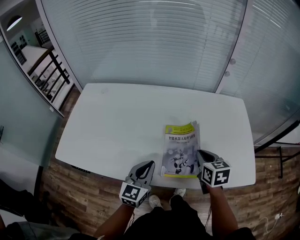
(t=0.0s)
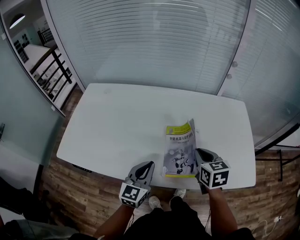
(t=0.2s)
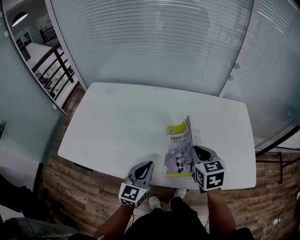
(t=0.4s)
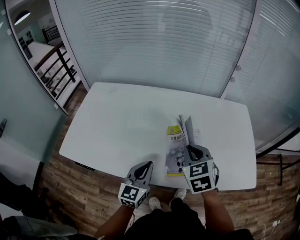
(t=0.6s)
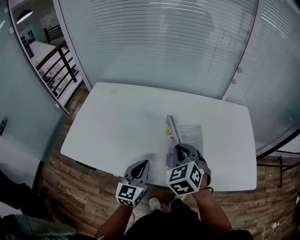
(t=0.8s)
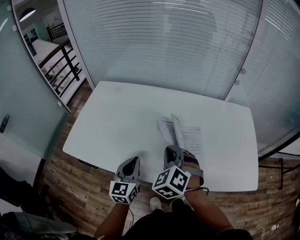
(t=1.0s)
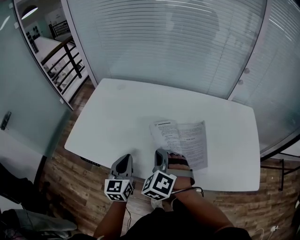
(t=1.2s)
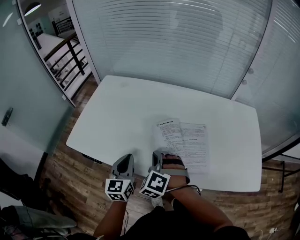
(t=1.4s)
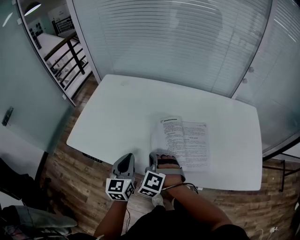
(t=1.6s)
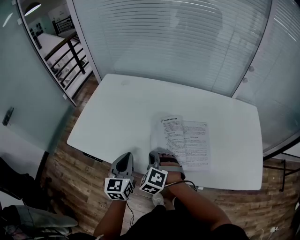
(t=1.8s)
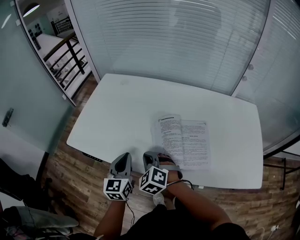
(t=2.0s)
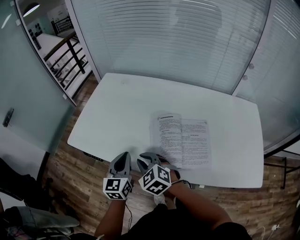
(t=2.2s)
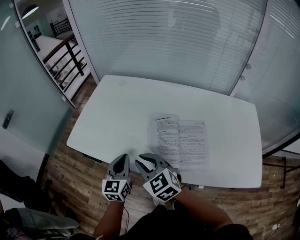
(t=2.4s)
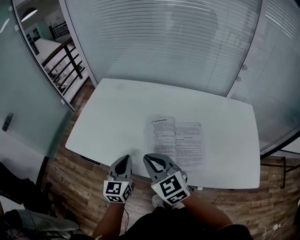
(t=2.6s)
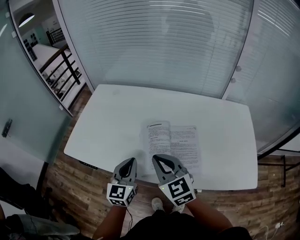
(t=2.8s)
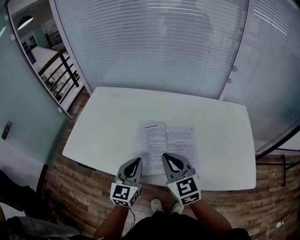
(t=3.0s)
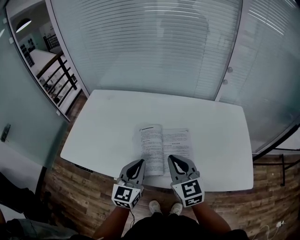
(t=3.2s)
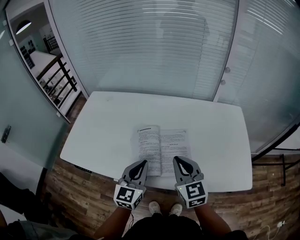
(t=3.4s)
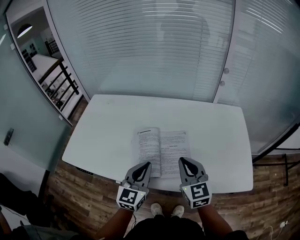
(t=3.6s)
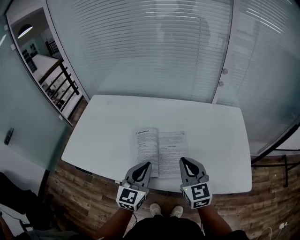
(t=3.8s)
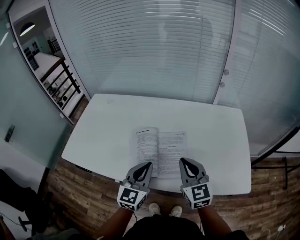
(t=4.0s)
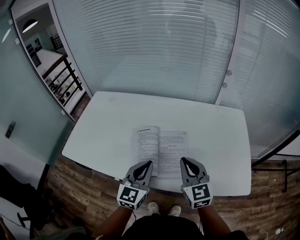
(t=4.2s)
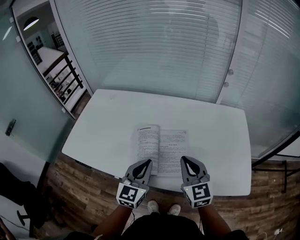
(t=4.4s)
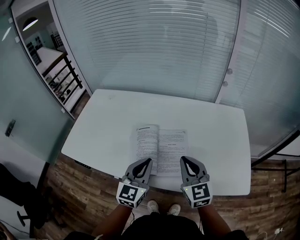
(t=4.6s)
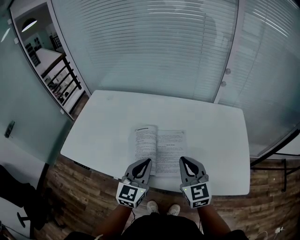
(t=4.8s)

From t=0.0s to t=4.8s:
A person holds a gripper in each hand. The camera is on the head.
From t=0.0s to t=1.6s: The right gripper heads to the left, covering about 30 cm, and rotates around the line of its fingers by about 80 degrees, counterclockwise from behind; the left gripper travels to the left by some 15 cm, and rotates about 20 degrees.
From t=1.6s to t=3.2s: The left gripper heads to the right, covering some 15 cm, while the right gripper is displaced to the right and upward by some 20 cm, and rolls clockwise, seen from behind, by approximately 60 degrees.
From t=3.2s to t=4.8s: Both grippers travel together to the right, roughly 5 cm.

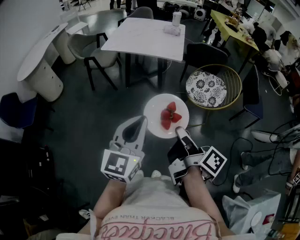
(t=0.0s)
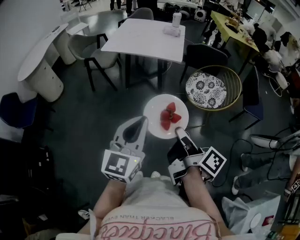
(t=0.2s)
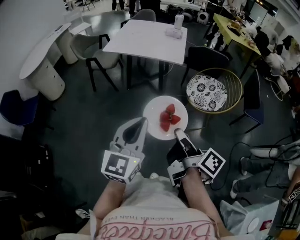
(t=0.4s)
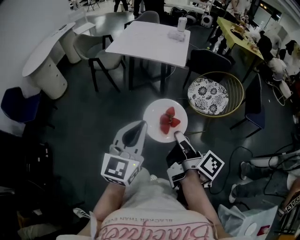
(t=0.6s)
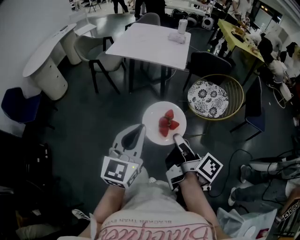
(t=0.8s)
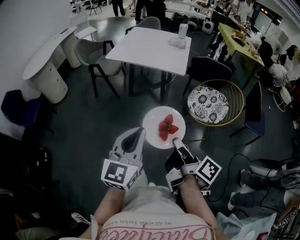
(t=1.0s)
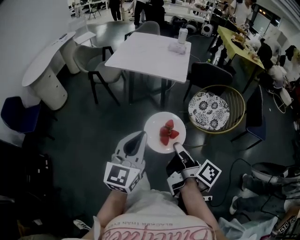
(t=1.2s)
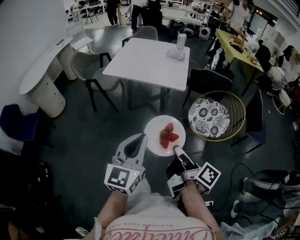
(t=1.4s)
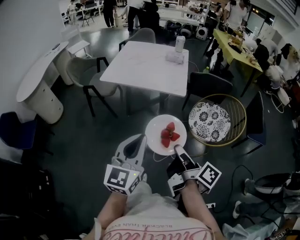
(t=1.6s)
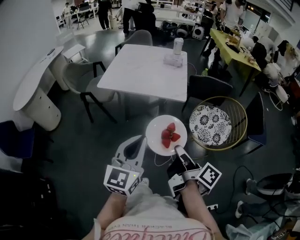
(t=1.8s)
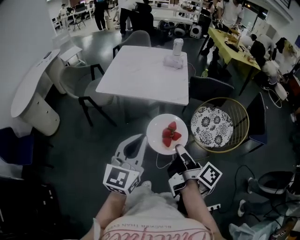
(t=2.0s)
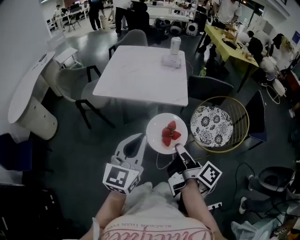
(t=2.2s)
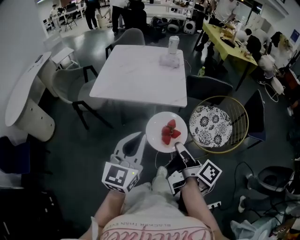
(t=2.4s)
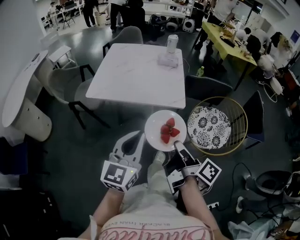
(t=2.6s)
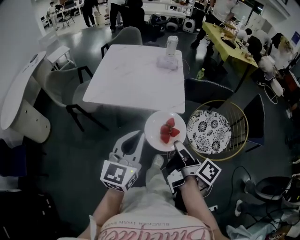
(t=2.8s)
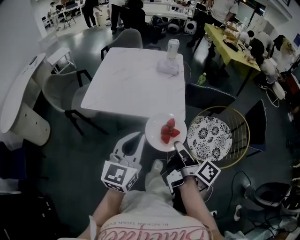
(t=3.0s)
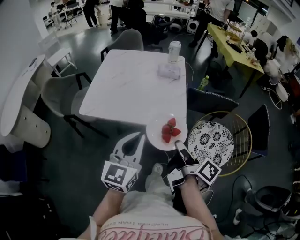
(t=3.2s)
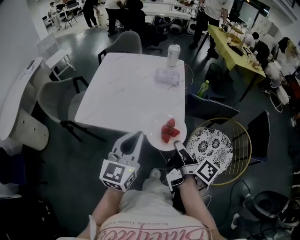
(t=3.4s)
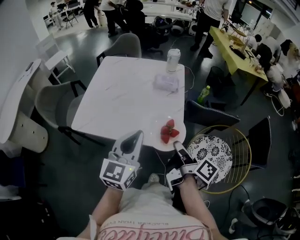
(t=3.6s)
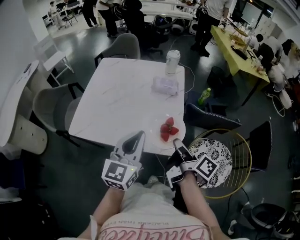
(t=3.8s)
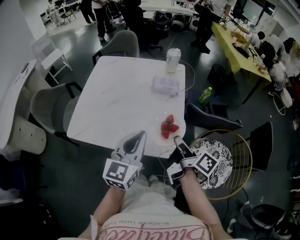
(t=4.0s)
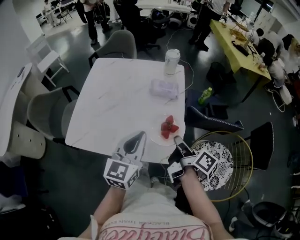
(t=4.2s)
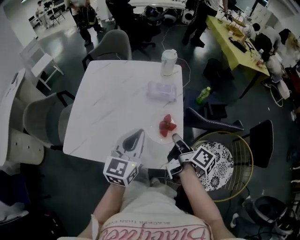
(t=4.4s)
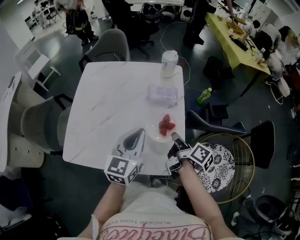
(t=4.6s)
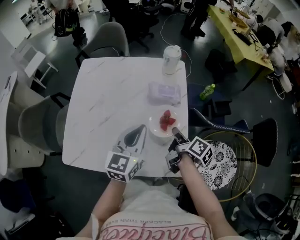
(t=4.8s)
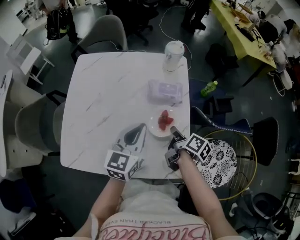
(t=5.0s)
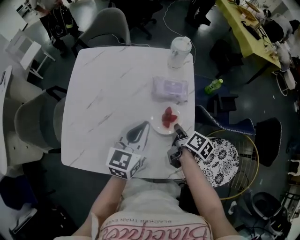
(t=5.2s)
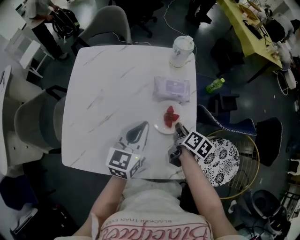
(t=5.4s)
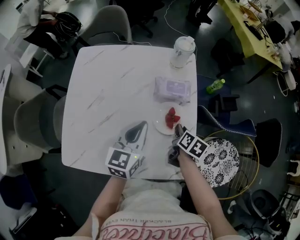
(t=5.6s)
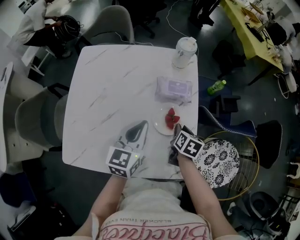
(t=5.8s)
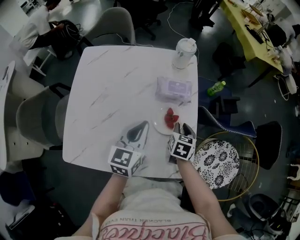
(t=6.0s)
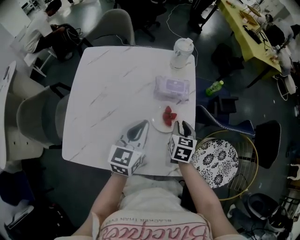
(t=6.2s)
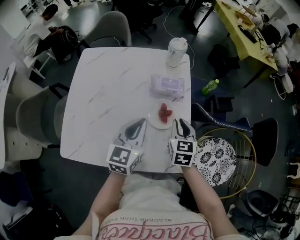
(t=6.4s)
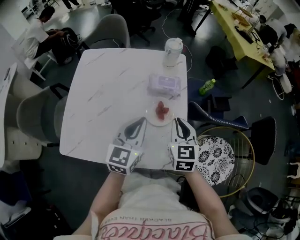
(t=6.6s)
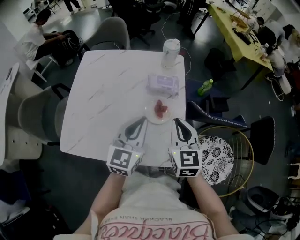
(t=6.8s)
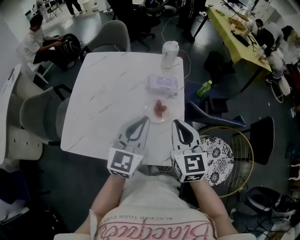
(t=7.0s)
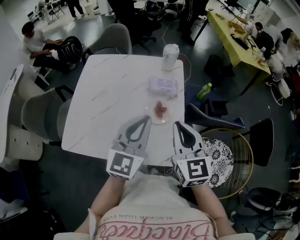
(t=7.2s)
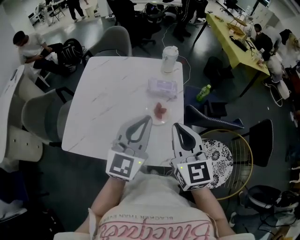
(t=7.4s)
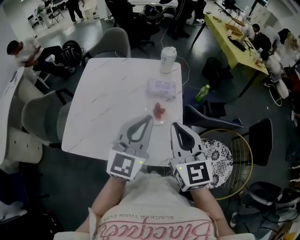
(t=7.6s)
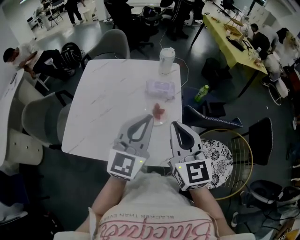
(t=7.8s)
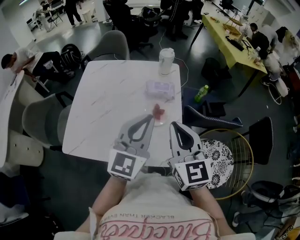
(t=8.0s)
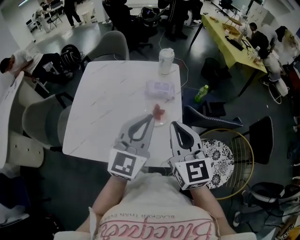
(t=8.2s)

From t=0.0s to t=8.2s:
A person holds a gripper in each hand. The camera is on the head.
From t=0.0s to t=1.6s: Both grippers travel together forward, approximately 20 cm.
From t=1.6s to t=3.2s: Both grippers move forward, approximately 35 cm.
From t=3.2s to t=5.0s: The pair of grippers is taken forward, about 40 cm. The right gripper goes roughly 20 cm downward, and rotates approximately 20 degrees.
From t=5.0s to t=6.6s: The right gripper heads upward, covering roughly 10 cm, and rotates around the line of its fingers by roughly 70 degrees, counterclockwise from behind.
From t=6.6s to t=8.2s: The grippers both shift upward and backward by roughly 15 cm. The right gripper turns by approximately 20 degrees.

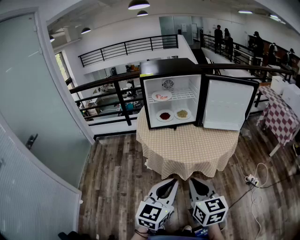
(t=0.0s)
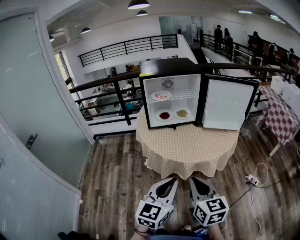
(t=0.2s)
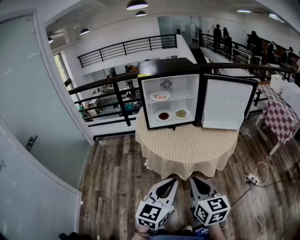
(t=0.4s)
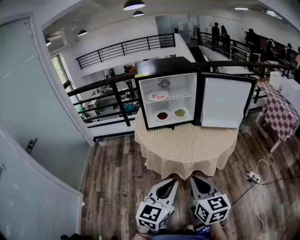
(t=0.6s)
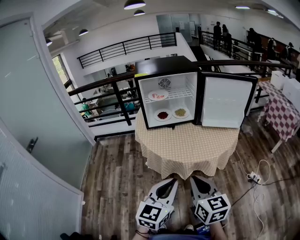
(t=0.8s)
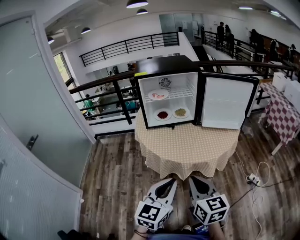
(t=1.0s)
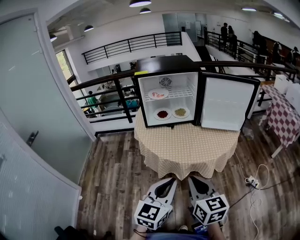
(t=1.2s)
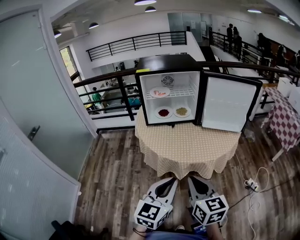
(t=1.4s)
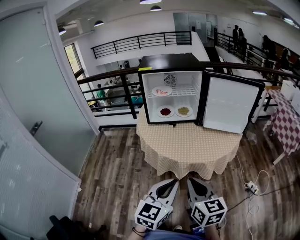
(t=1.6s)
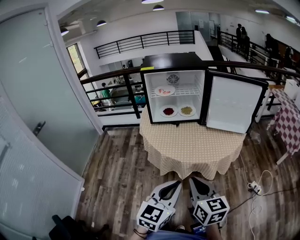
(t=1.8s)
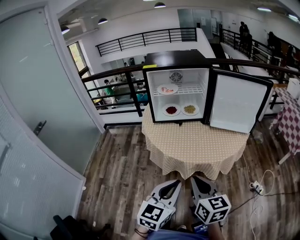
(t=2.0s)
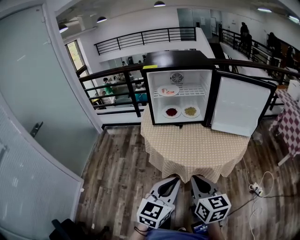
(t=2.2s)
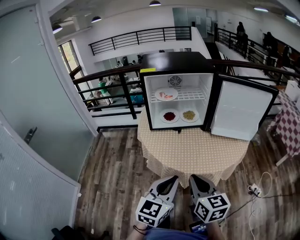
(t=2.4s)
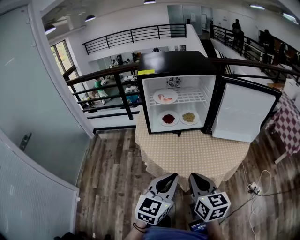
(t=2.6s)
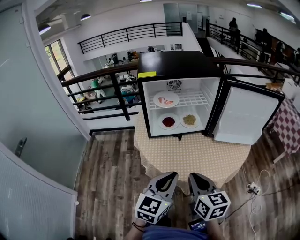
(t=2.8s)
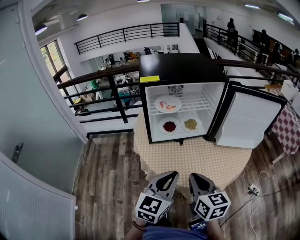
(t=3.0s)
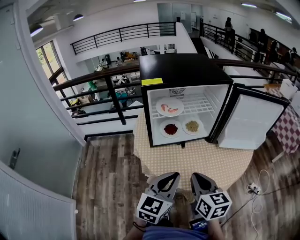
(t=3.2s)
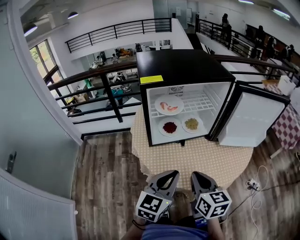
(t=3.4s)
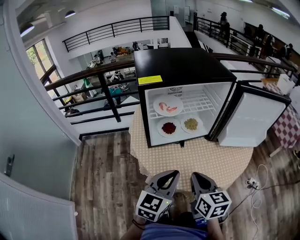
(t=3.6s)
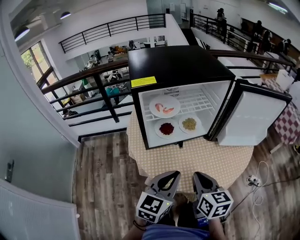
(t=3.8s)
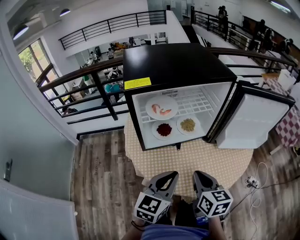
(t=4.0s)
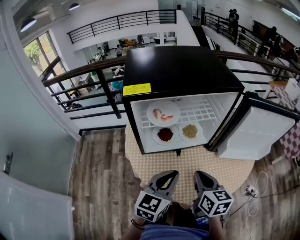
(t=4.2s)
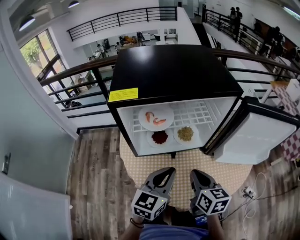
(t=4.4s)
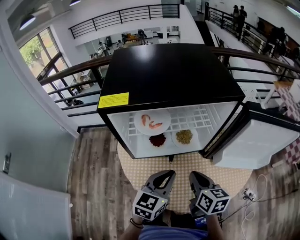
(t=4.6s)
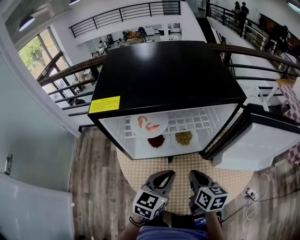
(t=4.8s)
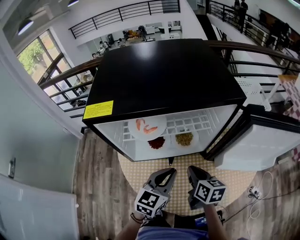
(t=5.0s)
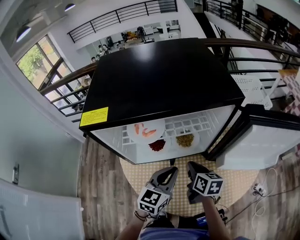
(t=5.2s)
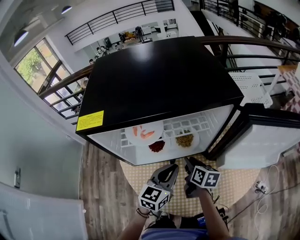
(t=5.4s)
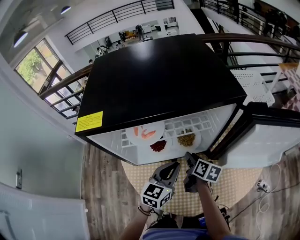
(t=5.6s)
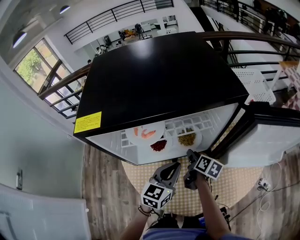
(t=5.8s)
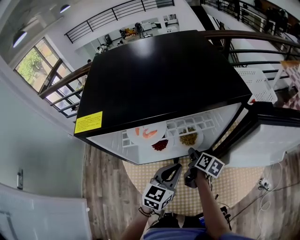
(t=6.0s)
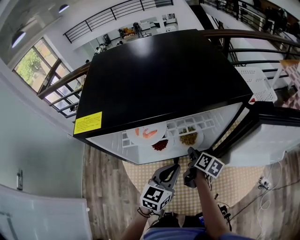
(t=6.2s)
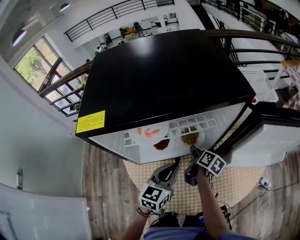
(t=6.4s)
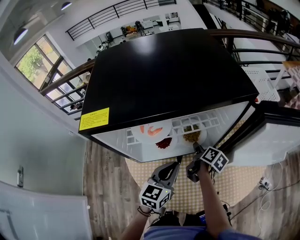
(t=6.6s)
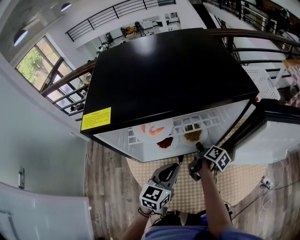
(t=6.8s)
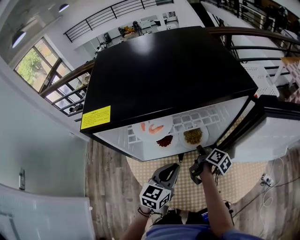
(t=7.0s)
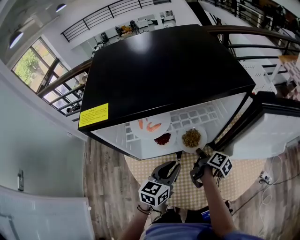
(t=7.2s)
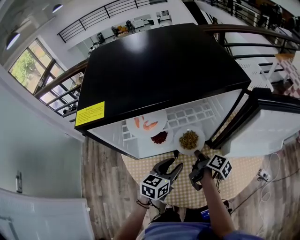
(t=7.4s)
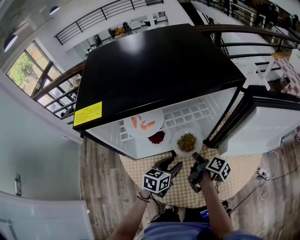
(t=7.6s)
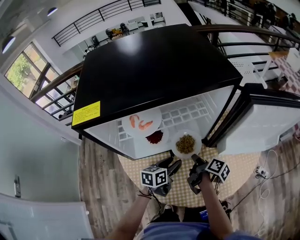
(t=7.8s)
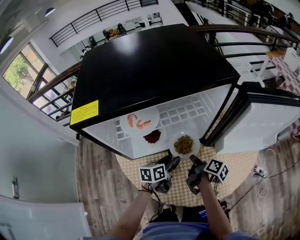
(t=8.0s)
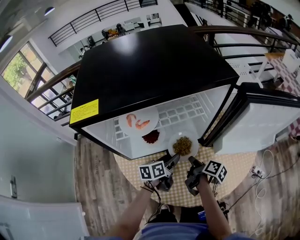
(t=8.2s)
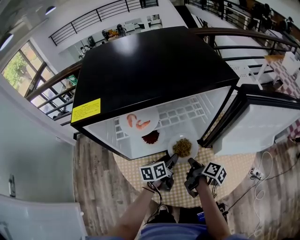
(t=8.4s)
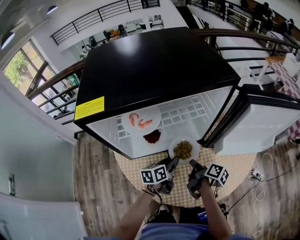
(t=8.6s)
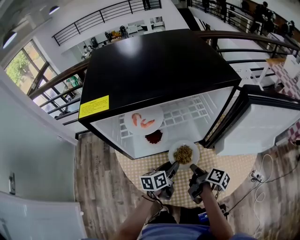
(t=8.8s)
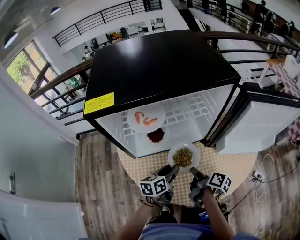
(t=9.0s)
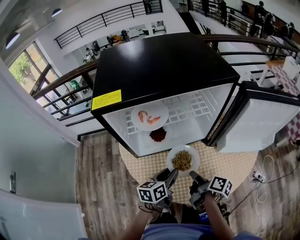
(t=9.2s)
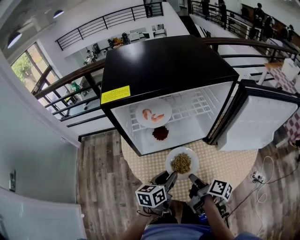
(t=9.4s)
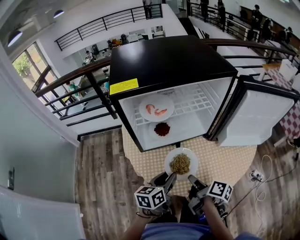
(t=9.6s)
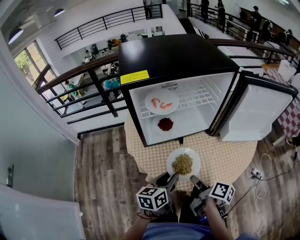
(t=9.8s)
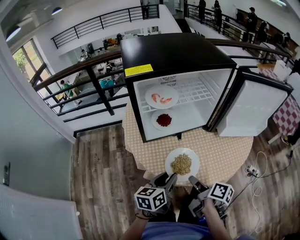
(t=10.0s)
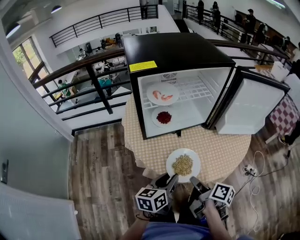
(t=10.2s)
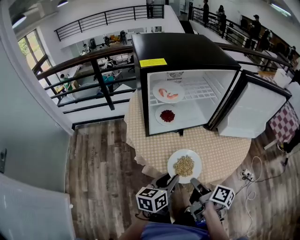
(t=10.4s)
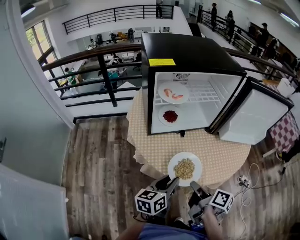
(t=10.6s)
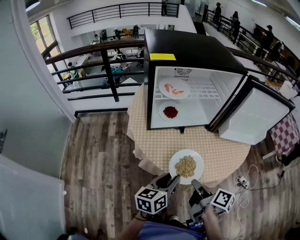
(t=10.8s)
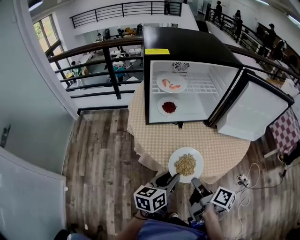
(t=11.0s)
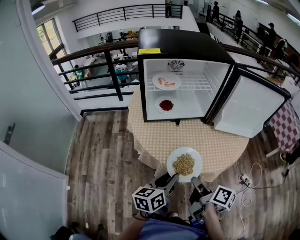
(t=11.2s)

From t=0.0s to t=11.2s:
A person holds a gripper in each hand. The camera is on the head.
From t=0.0s to t=1.6s: The two grippers go approximately 5 cm to the right.
From t=1.6s to t=3.2s: The two grippers go approximately 30 cm forward and to the left.
From t=3.2s to t=4.8s: Both grippers travel together forward and downward, about 20 cm.
From t=4.8s to t=6.4s: The left gripper heads forward, covering about 5 cm. Meanwhile the right gripper goes some 20 cm forward and downward, swivels approximately 40 degrees, and opens its fingers.
From t=6.4s to t=8.0s: The left gripper heads downward, covering about 10 cm, changes its angle by some 40 degrees, and opens up; the right gripper is displaced backward by approximately 10 cm, and closes.
From t=8.0s to t=9.6s: Both grippers move backward and upward, approximately 15 cm.
From t=9.6s to t=11.2s: The grippers both shift backward by approximately 15 cm.
